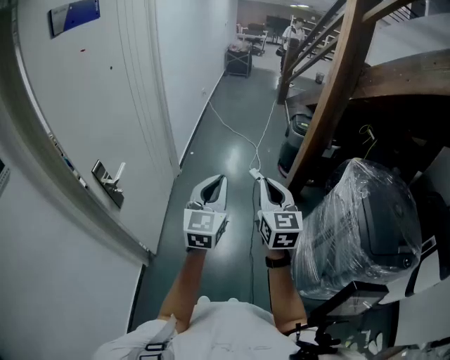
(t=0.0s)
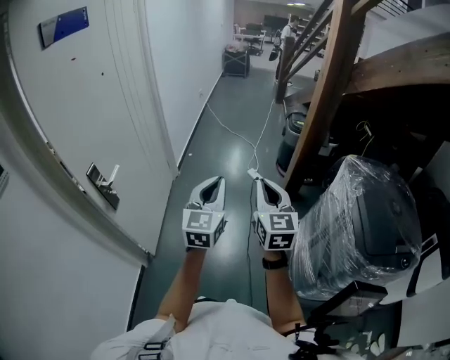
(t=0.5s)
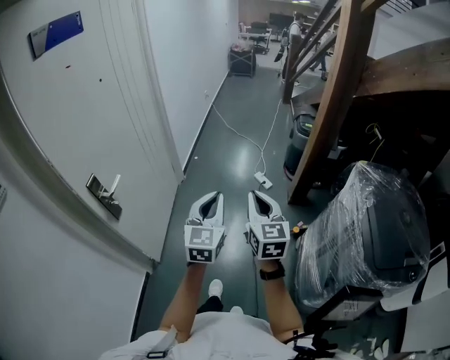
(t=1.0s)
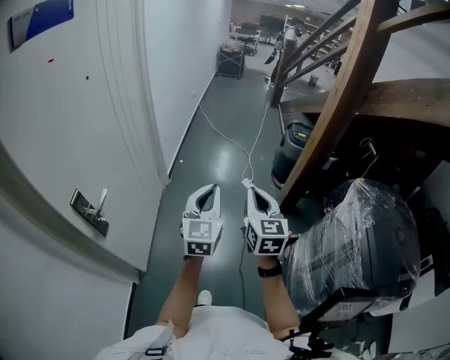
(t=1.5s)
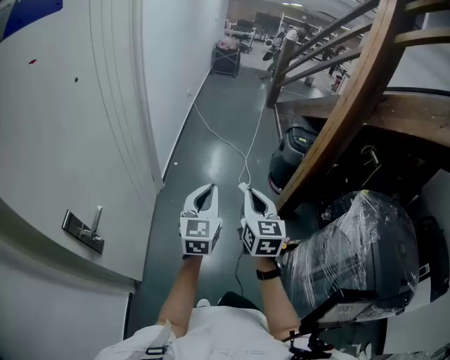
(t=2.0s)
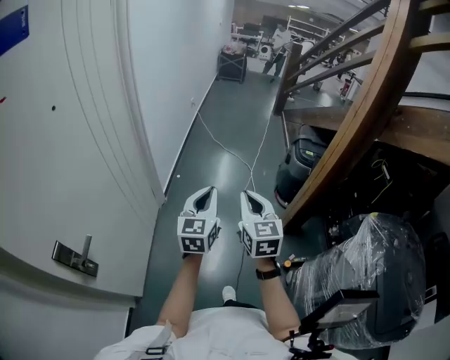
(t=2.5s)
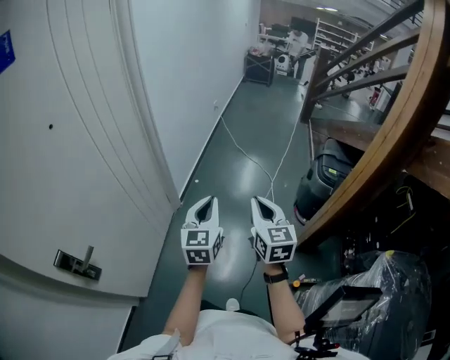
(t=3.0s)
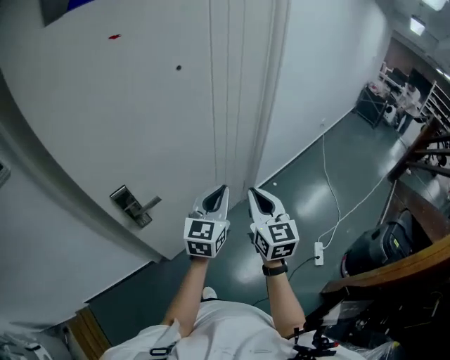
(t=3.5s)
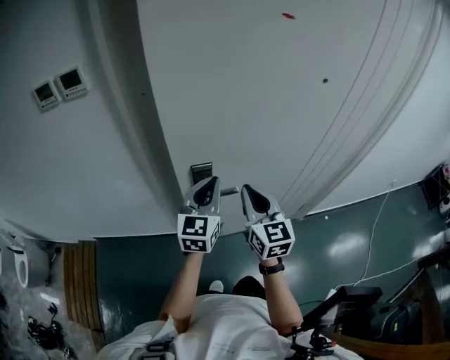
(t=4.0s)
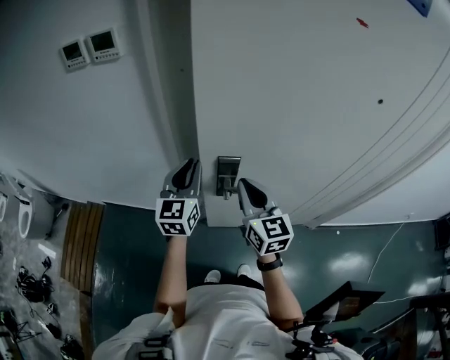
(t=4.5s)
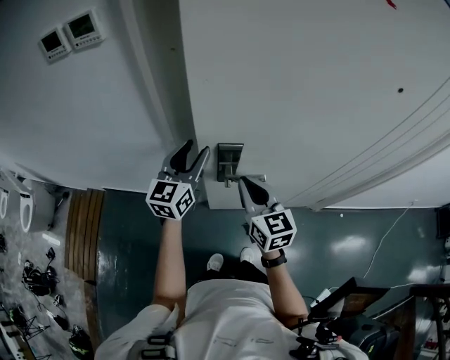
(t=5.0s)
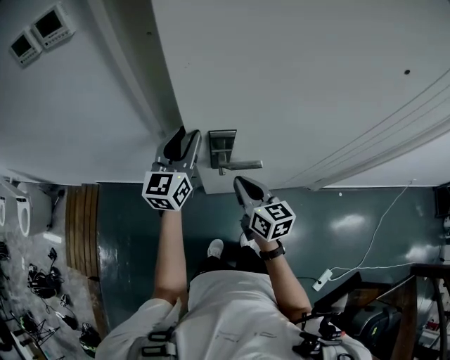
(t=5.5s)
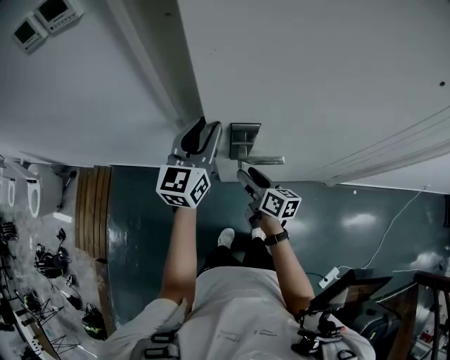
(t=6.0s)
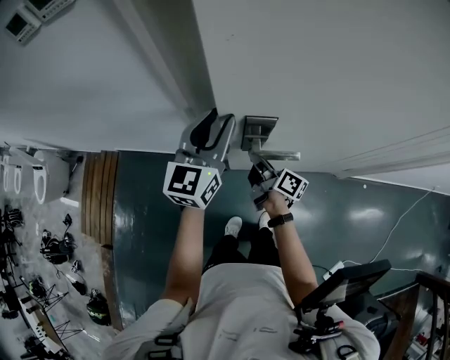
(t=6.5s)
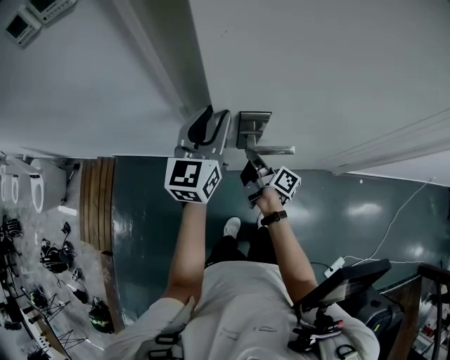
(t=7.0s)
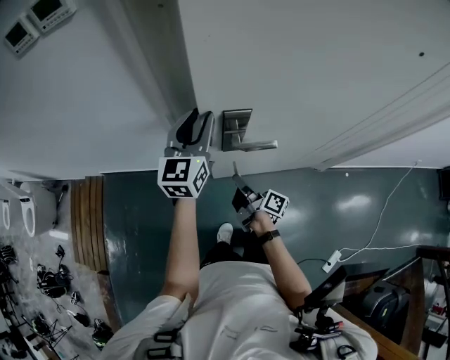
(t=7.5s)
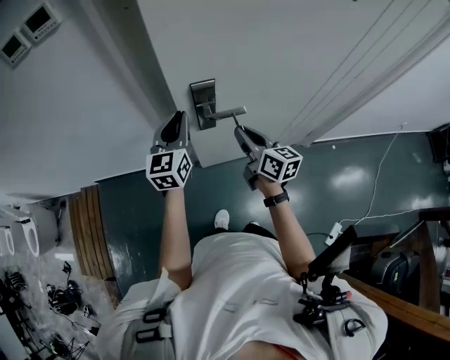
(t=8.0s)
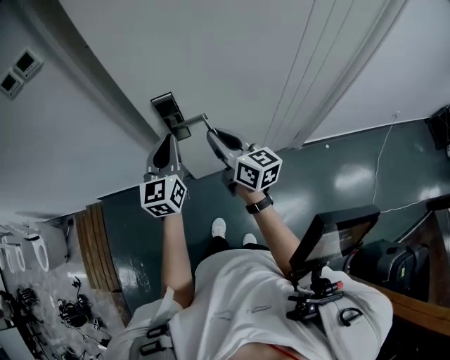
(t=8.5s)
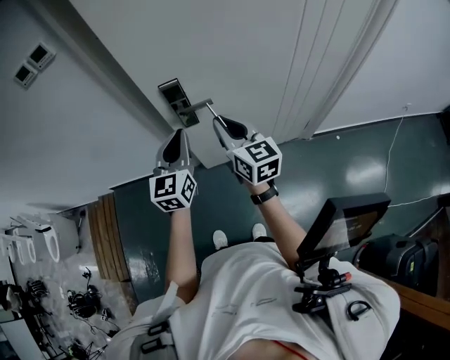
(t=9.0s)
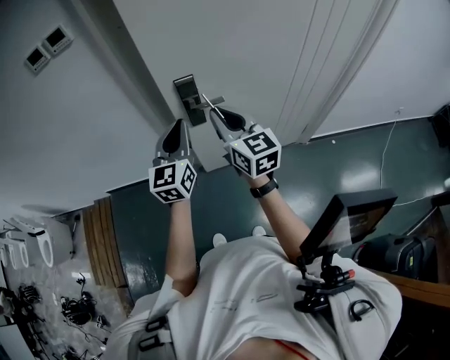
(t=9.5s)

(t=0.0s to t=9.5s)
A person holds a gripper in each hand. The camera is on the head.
t=0.0s - t=2.0s: The grippers both shift forward by about 25 cm.
t=2.0s - t=4.0s: Both grippers are carried approximately 40 cm. The left gripper changes its angle by roughly 70 degrees, while the right gripper changes its angle by roughly 90 degrees.
t=4.0s - t=5.5s: The left gripper is displaced to the left, forward and downward by roughly 15 cm, and opens up. Meanwhile the right gripper is displaced downward by about 15 cm, and turns by some 30 degrees.
t=5.5s - t=7.5s: The right gripper shifts some 15 cm downward, rotates around the line of its fingers by approximately 50 degrees, clockwise from behind, and opens, then closes again.
t=7.5s - t=9.5s: The right gripper moves upward, some 30 cm, and rolls counterclockwise, seen from behind, by approximately 70 degrees. Meanwhile the left gripper heads backward, covering approximately 20 cm, and closes up.

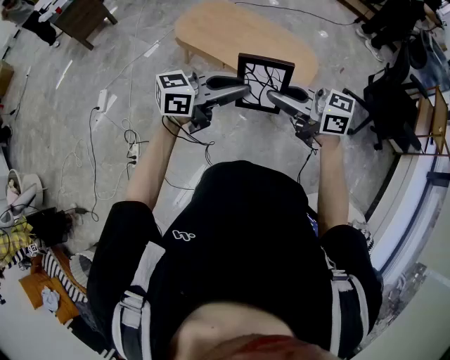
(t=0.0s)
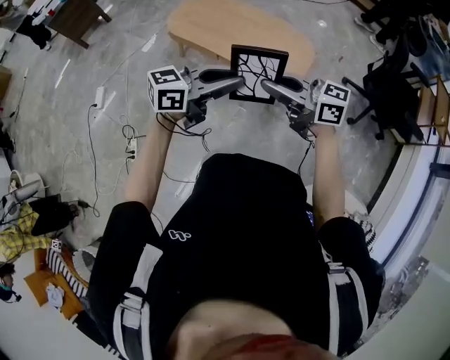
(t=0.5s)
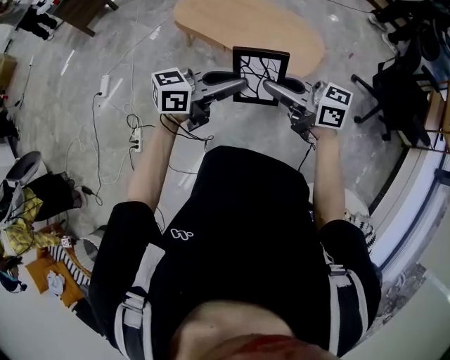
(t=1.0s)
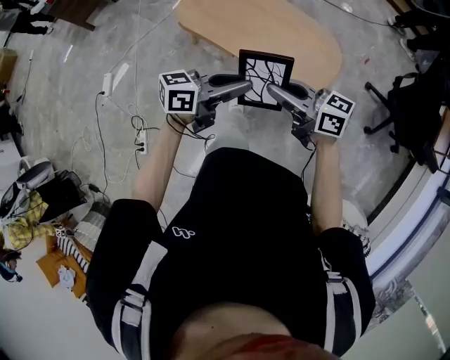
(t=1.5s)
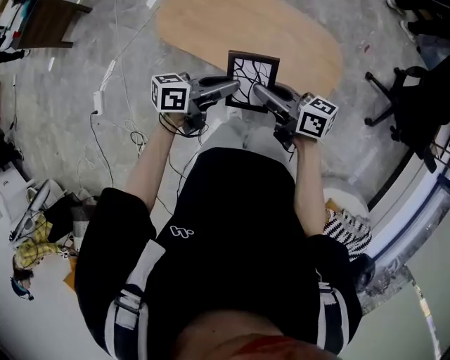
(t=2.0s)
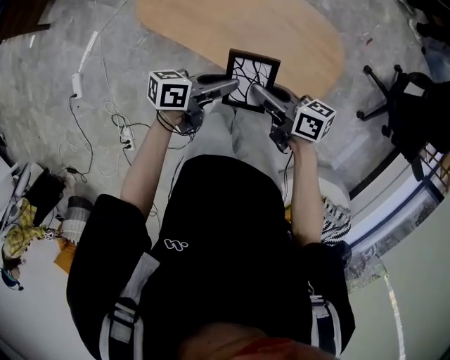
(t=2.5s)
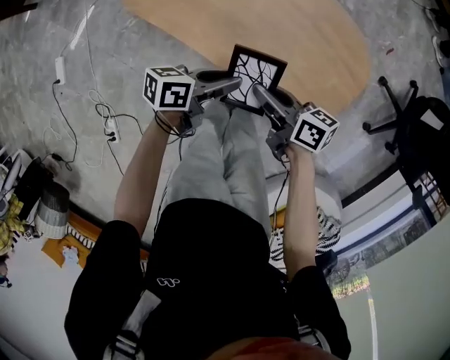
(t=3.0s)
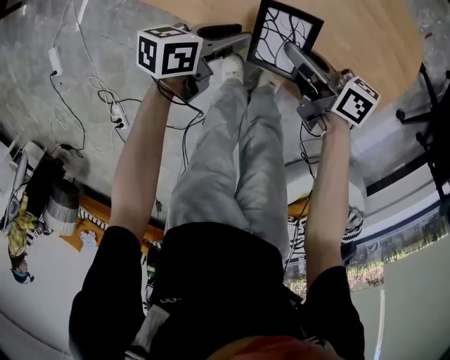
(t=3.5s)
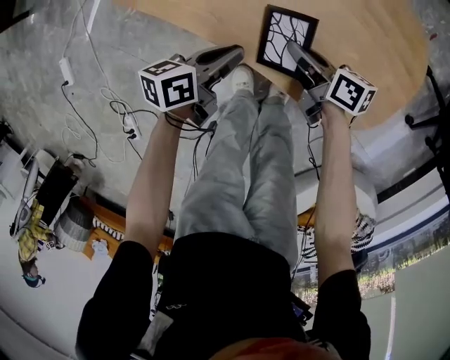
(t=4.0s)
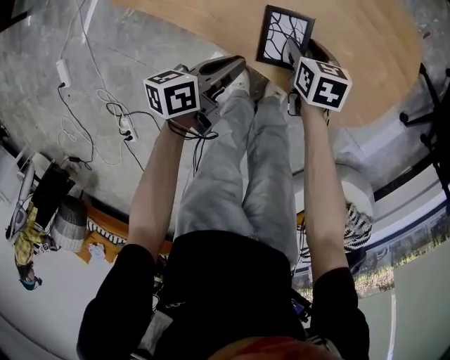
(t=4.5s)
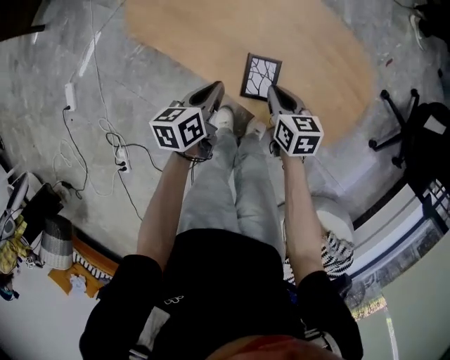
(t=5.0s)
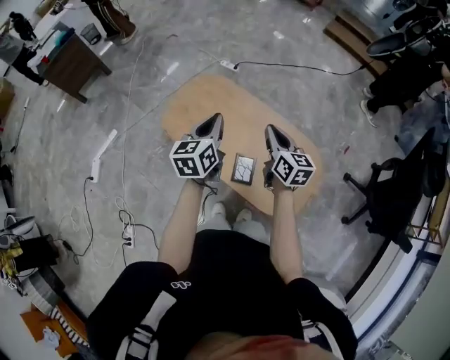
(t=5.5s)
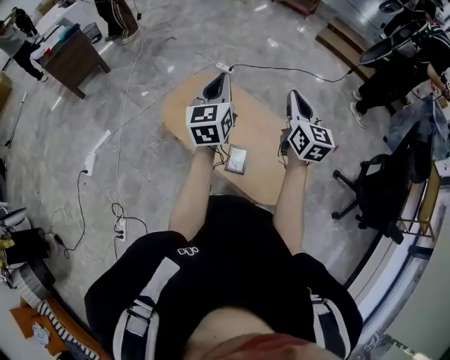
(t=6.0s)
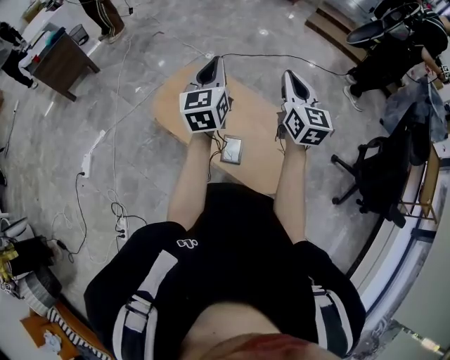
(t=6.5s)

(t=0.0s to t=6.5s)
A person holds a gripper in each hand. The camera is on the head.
t=0.0s - t=2.0s: The grippers make only small movements.
t=2.0s - t=4.5s: Both grippers travel together downward, about 40 cm. The right gripper points its fingers approximately 50 degrees further downward, and opens. The left gripper turns by some 30 degrees.
t=4.5s - t=6.5s: The two grippers go roughly 60 cm upward. The right gripper tilts its fingers roughly 60 degrees upward, and closes up, while the left gripper rotates about 70 degrees.

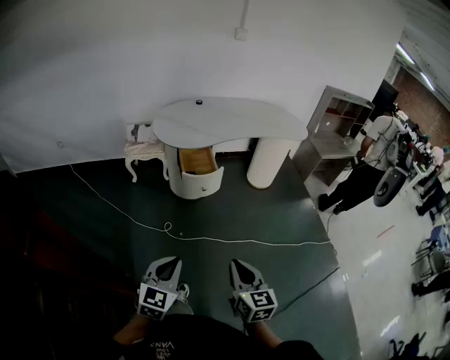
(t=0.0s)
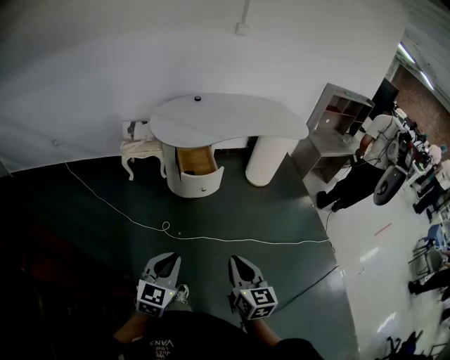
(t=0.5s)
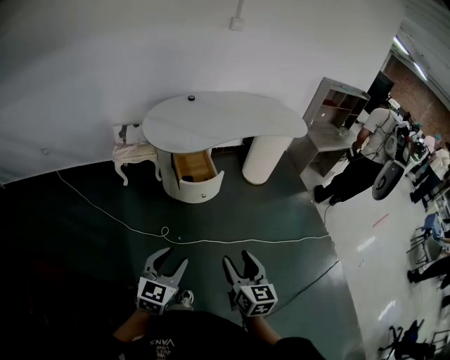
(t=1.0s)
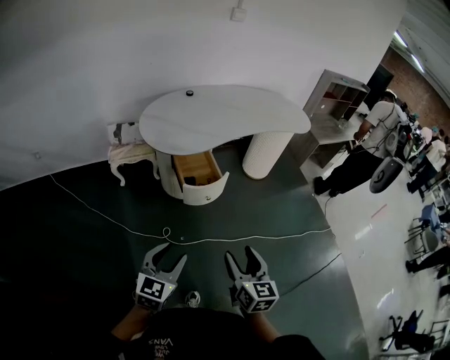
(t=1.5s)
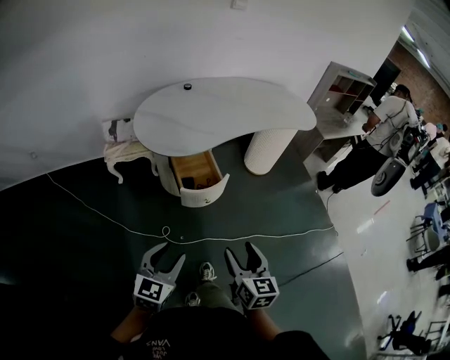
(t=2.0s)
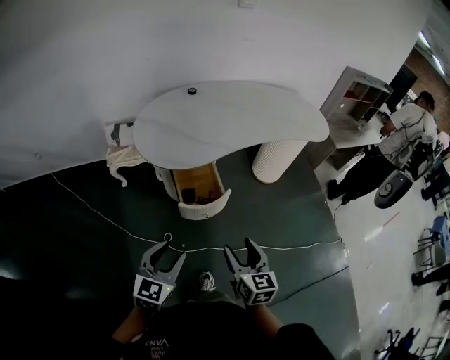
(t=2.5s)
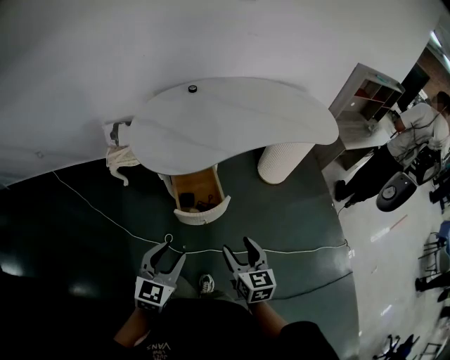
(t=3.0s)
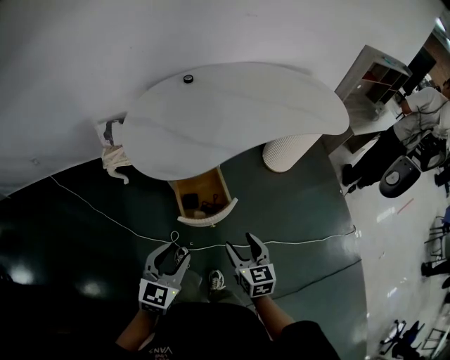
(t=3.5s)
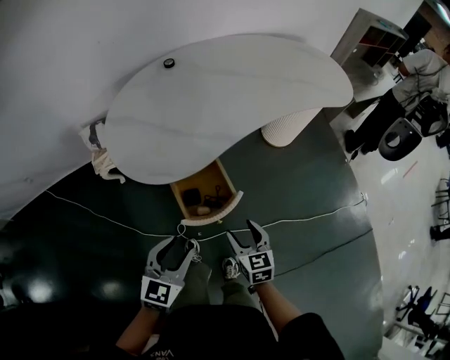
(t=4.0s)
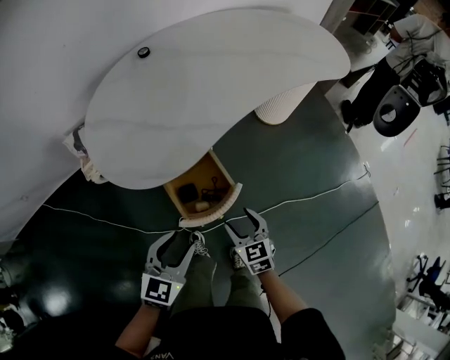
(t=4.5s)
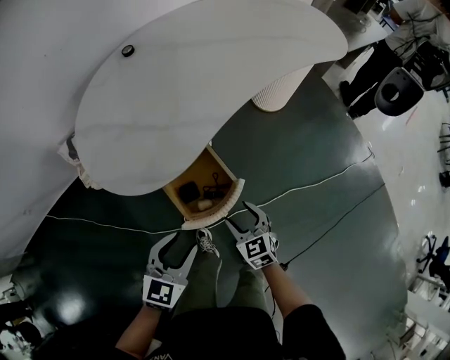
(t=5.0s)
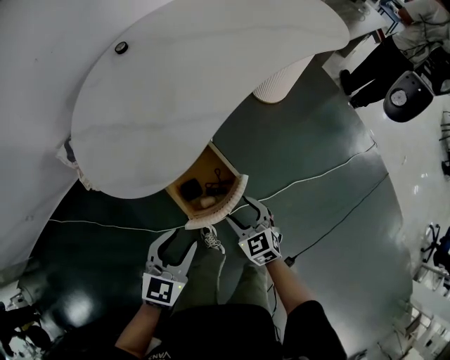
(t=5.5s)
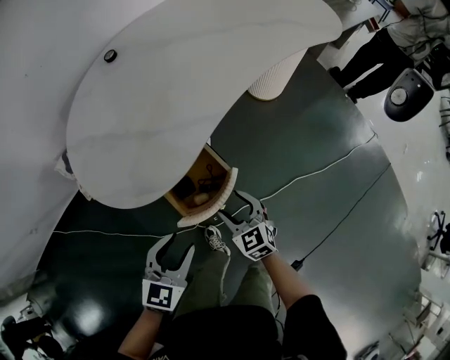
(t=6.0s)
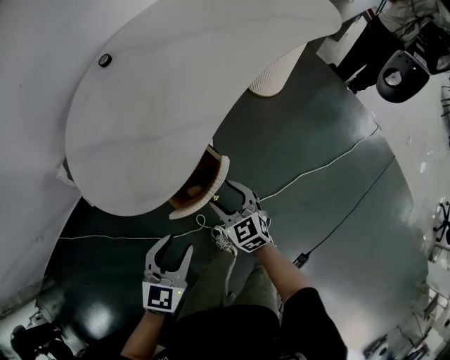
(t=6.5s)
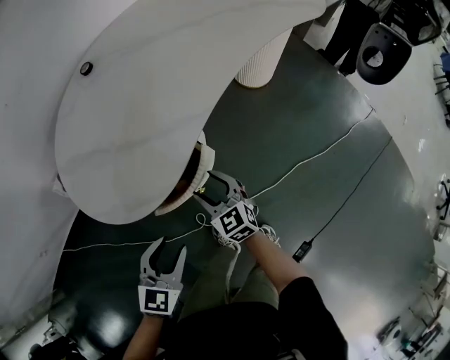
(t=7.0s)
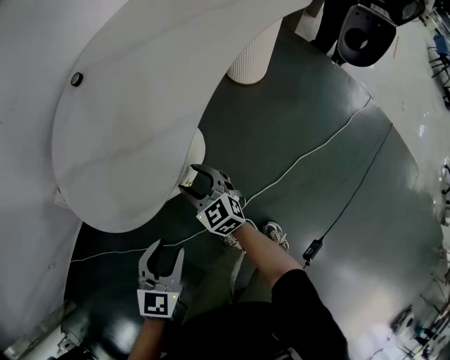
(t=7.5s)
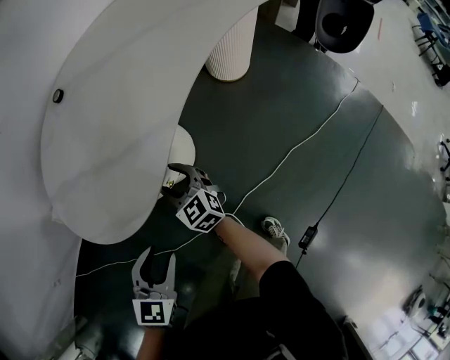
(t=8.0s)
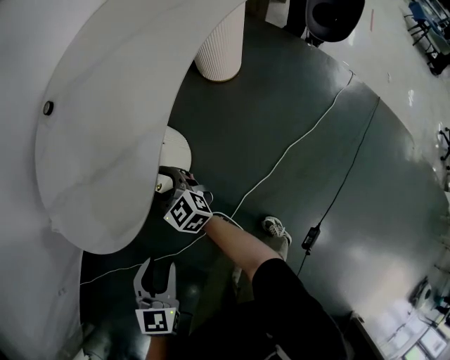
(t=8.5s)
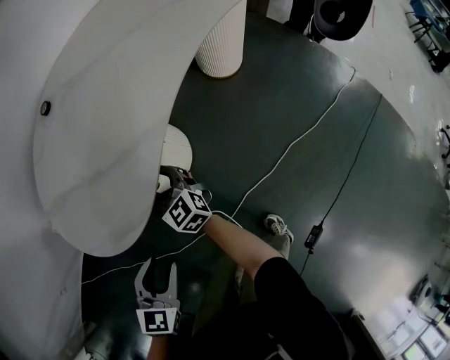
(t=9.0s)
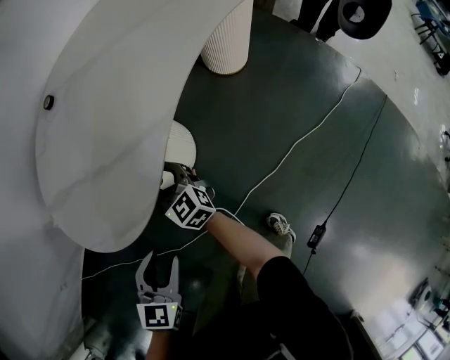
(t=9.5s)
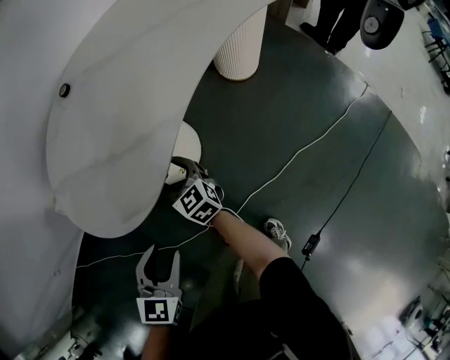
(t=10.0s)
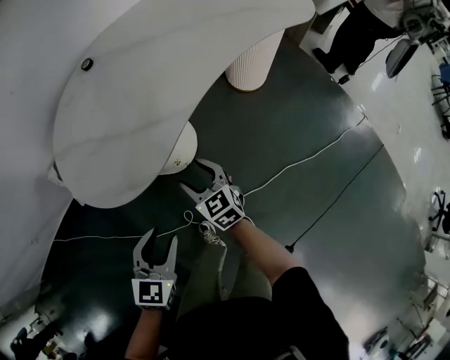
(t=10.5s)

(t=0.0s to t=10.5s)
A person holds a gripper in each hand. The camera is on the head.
t=0.0s - t=2.0s: The grippers both shift forward and to the left by roughly 25 cm. The left gripper opens up; the right gripper opens its fingers.
t=2.0s - t=4.0s: The left gripper moves forward, some 25 cm, while the right gripper shifts roughly 35 cm forward and downward.
t=4.0s - t=6.5s: The right gripper moves forward, downward and to the left, some 15 cm; the left gripper shifts approximately 10 cm downward and forward.
t=6.5s - t=8.5s: The right gripper is displaced forward and to the left by about 15 cm.
t=8.5s - t=10.5s: The left gripper heads to the right, covering approximately 5 cm, while the right gripper shifts approximately 10 cm to the right and backward.
